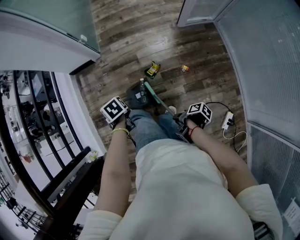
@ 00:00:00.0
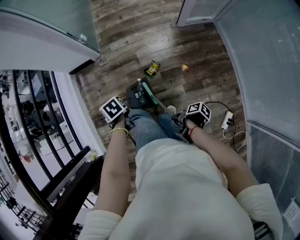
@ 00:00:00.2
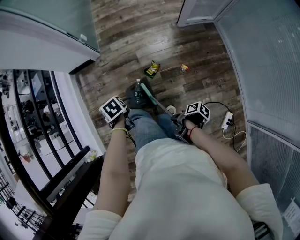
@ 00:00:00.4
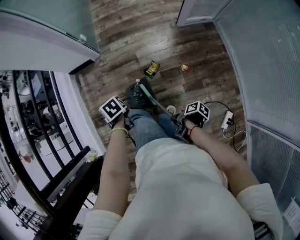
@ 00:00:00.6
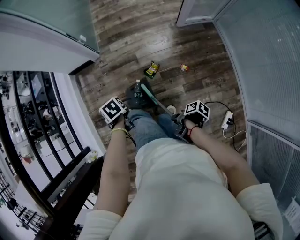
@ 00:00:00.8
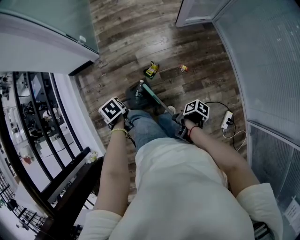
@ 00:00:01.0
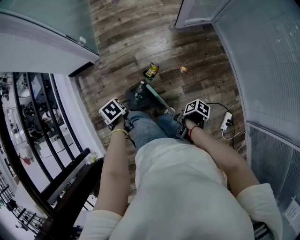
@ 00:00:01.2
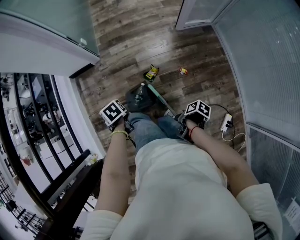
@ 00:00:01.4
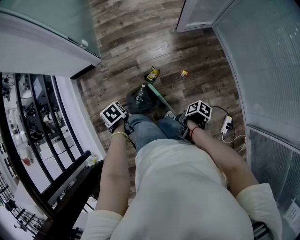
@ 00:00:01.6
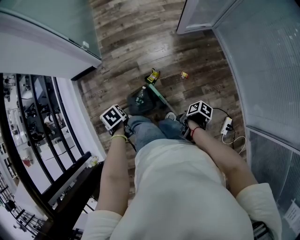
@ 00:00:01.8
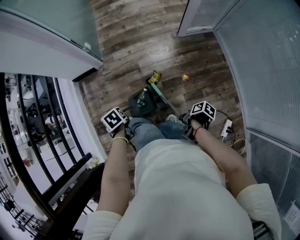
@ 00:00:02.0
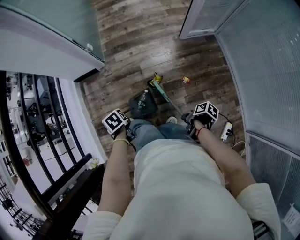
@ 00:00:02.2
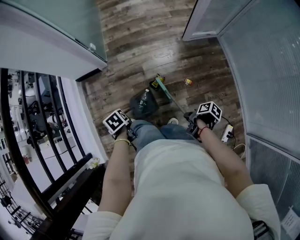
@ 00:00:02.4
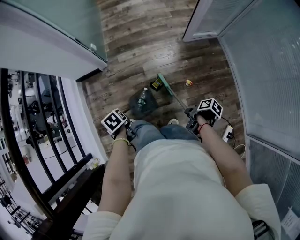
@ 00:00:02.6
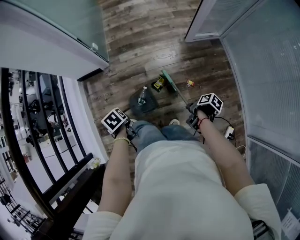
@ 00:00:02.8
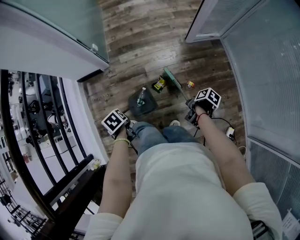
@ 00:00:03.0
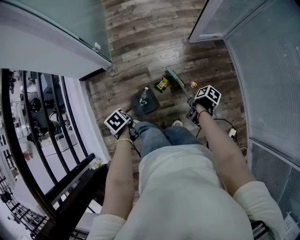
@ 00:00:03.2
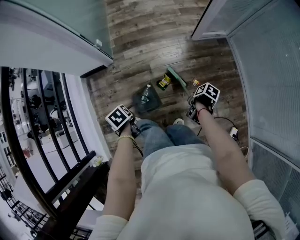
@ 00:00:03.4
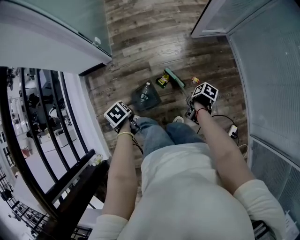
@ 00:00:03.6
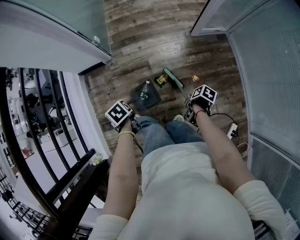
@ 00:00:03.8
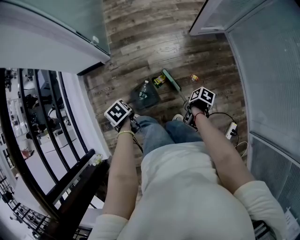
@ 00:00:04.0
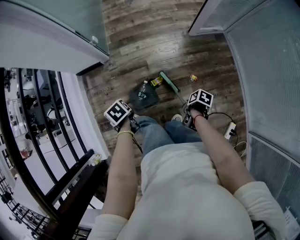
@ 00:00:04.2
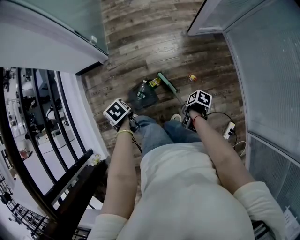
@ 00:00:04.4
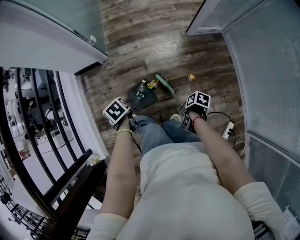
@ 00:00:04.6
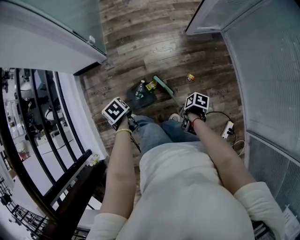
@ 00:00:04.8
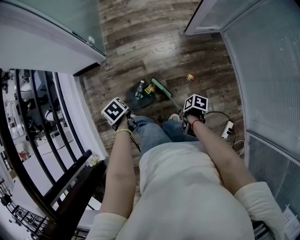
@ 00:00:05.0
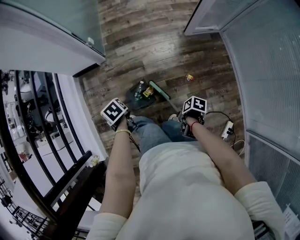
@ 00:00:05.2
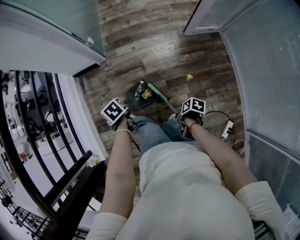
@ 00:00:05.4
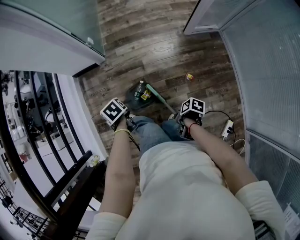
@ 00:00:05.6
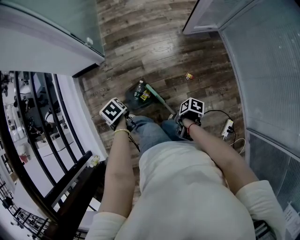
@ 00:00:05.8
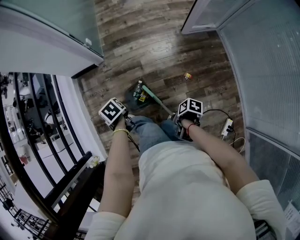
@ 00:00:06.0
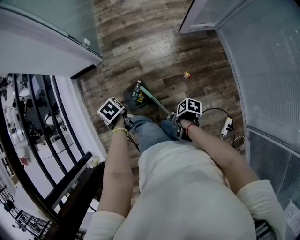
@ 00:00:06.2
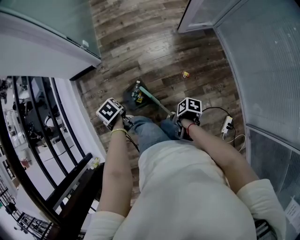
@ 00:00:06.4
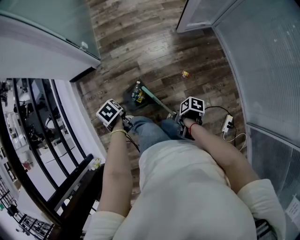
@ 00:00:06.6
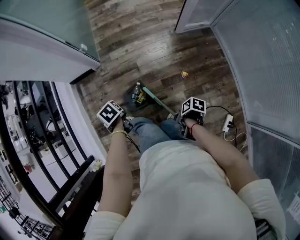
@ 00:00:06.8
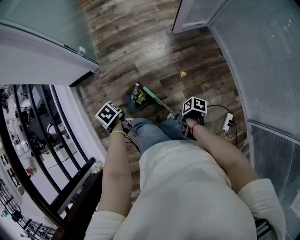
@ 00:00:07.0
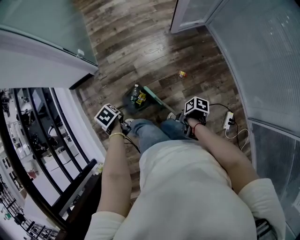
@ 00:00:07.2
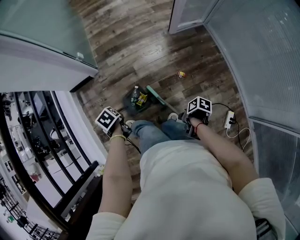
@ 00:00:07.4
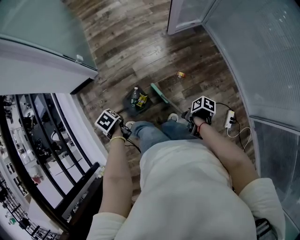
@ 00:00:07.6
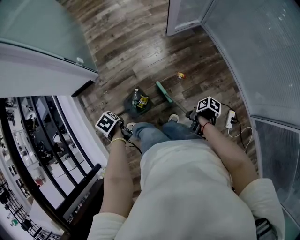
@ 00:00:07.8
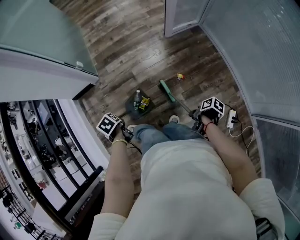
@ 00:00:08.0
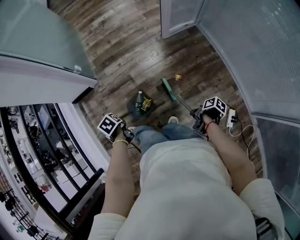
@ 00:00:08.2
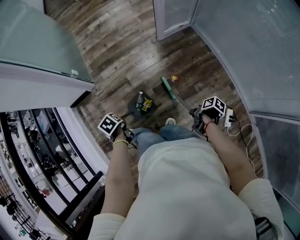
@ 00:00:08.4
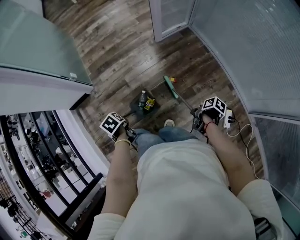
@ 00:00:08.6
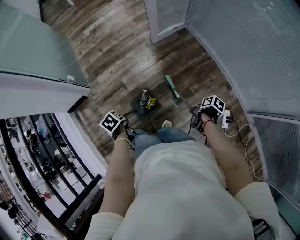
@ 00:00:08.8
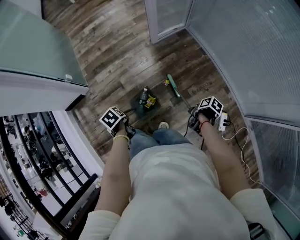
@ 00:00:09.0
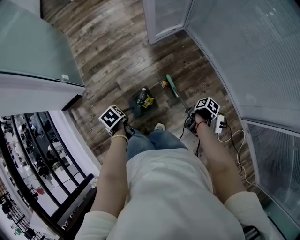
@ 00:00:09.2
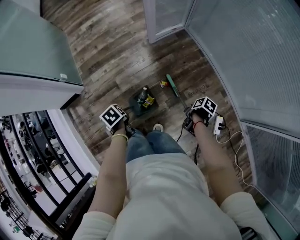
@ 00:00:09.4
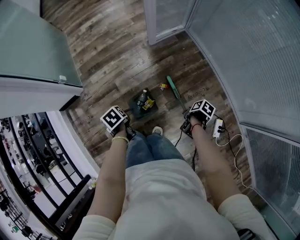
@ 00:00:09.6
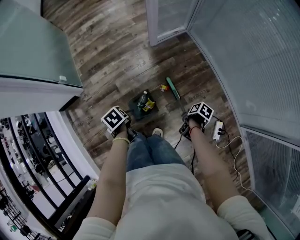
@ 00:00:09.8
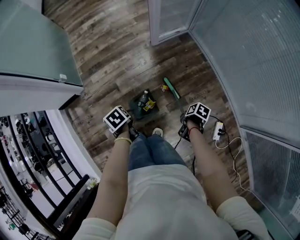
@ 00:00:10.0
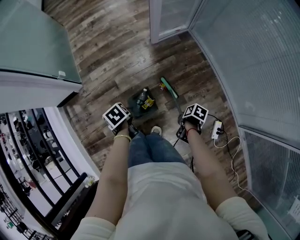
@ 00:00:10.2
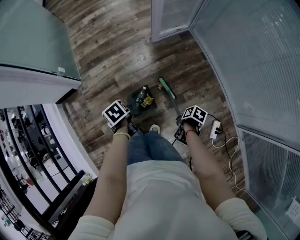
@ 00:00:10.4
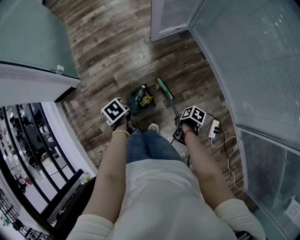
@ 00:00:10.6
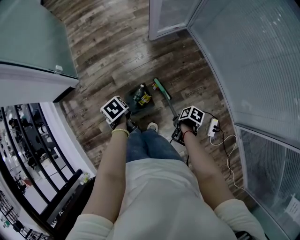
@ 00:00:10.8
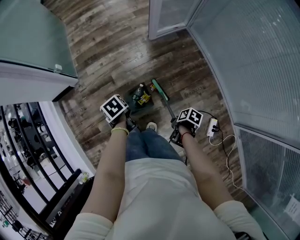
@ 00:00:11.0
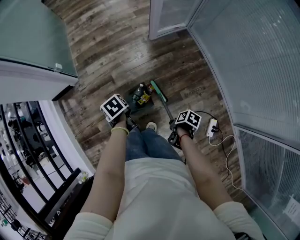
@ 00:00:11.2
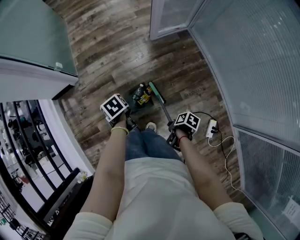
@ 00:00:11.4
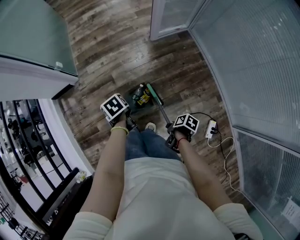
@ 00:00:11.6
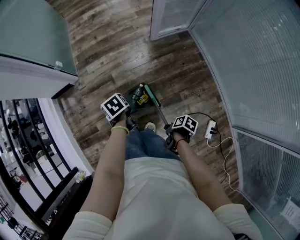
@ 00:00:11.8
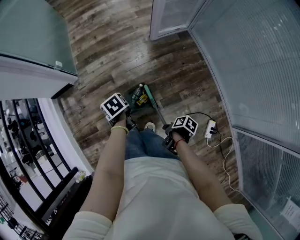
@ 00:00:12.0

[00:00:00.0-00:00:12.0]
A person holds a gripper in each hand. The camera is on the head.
00:00:07.6 to 00:00:09.0: The left gripper changes place by roughly 20 cm.
00:00:09.0 to 00:00:10.4: The left gripper ends up approximately 10 cm from where it was.

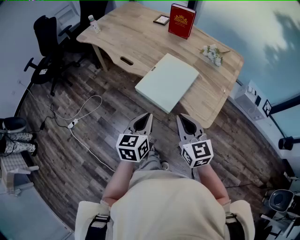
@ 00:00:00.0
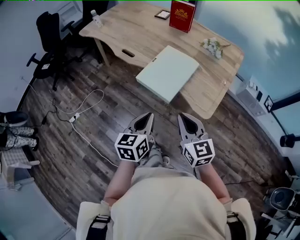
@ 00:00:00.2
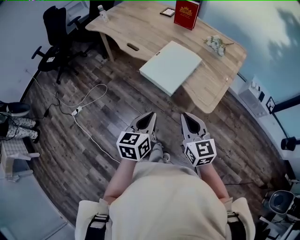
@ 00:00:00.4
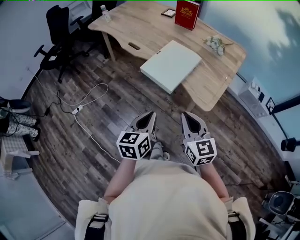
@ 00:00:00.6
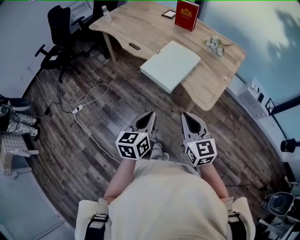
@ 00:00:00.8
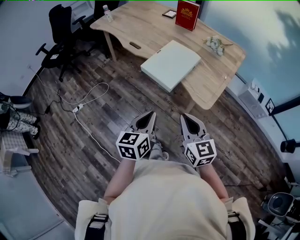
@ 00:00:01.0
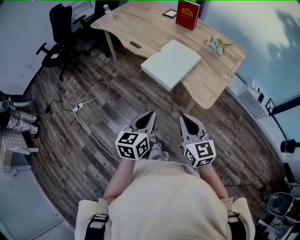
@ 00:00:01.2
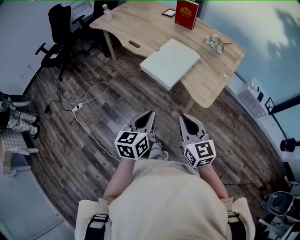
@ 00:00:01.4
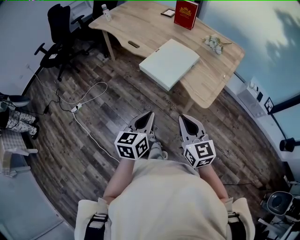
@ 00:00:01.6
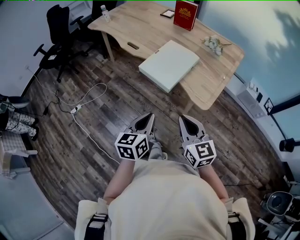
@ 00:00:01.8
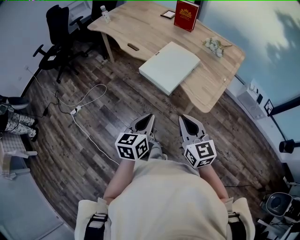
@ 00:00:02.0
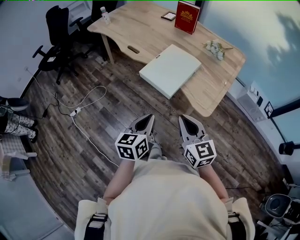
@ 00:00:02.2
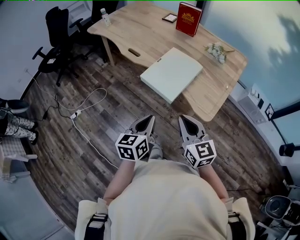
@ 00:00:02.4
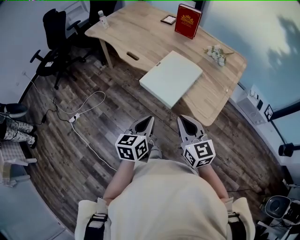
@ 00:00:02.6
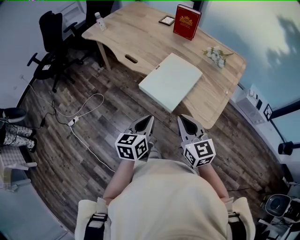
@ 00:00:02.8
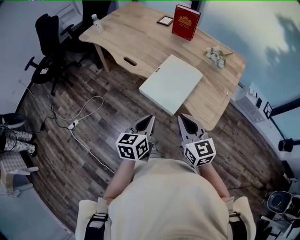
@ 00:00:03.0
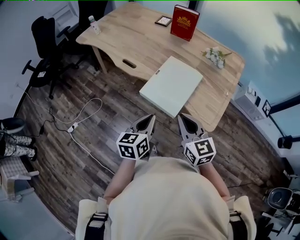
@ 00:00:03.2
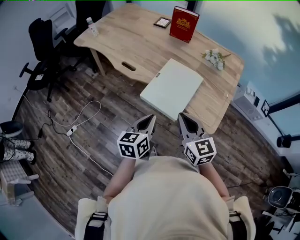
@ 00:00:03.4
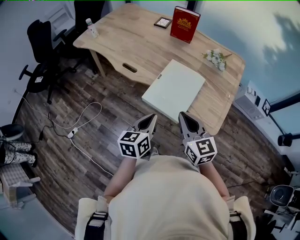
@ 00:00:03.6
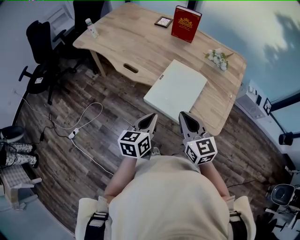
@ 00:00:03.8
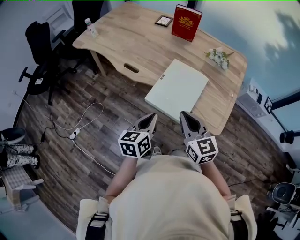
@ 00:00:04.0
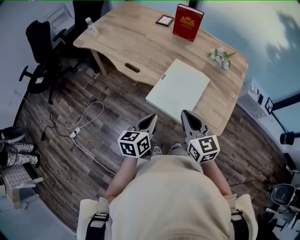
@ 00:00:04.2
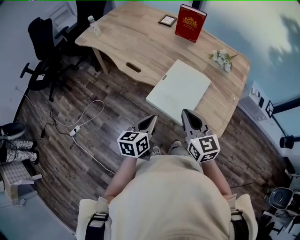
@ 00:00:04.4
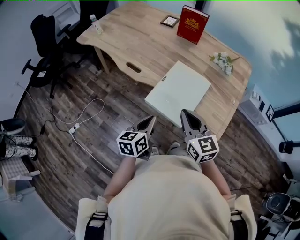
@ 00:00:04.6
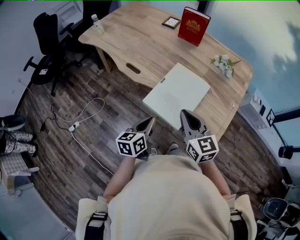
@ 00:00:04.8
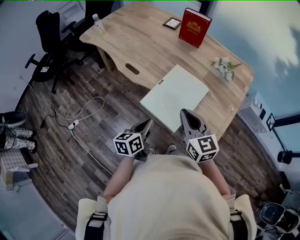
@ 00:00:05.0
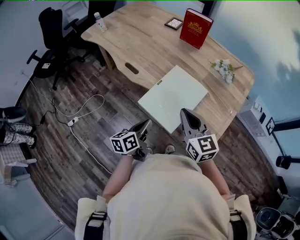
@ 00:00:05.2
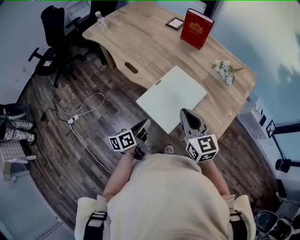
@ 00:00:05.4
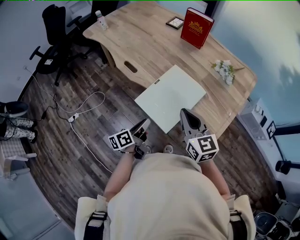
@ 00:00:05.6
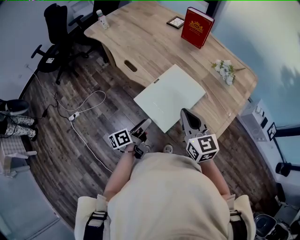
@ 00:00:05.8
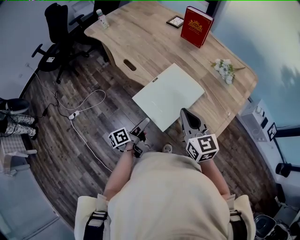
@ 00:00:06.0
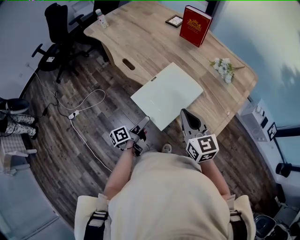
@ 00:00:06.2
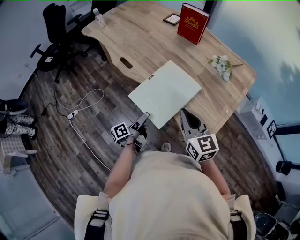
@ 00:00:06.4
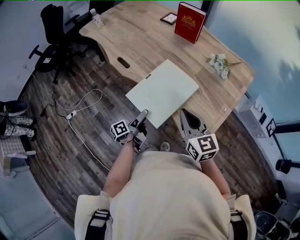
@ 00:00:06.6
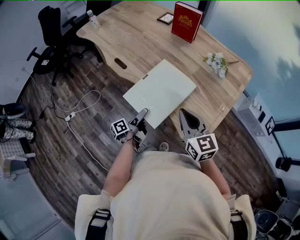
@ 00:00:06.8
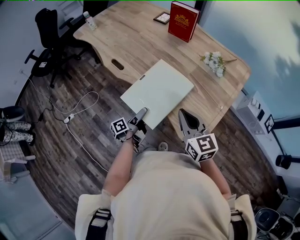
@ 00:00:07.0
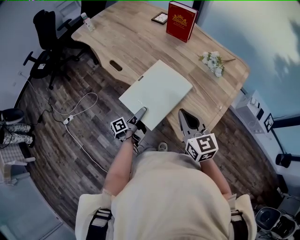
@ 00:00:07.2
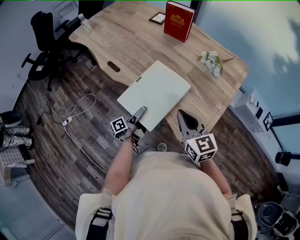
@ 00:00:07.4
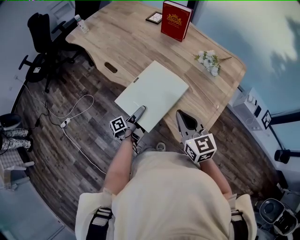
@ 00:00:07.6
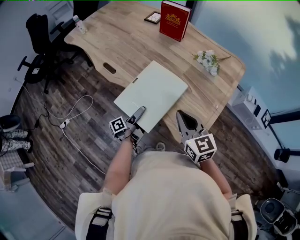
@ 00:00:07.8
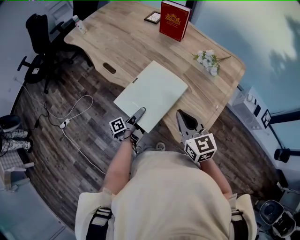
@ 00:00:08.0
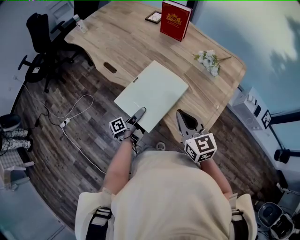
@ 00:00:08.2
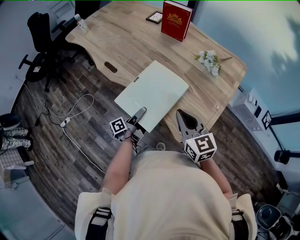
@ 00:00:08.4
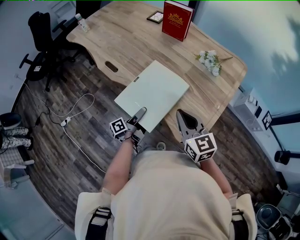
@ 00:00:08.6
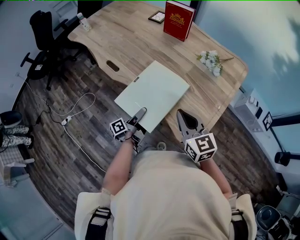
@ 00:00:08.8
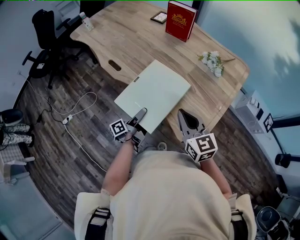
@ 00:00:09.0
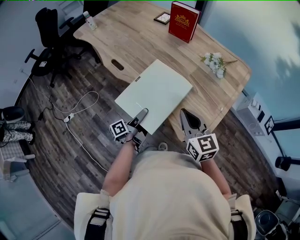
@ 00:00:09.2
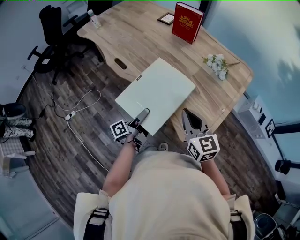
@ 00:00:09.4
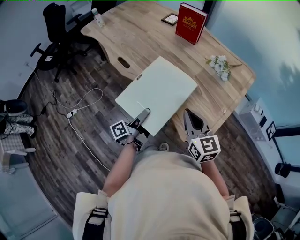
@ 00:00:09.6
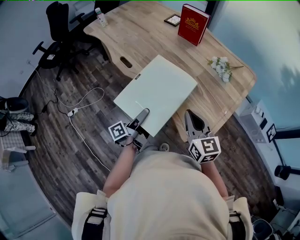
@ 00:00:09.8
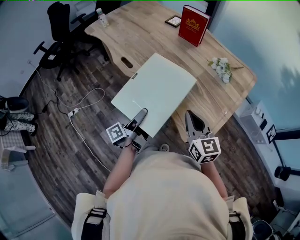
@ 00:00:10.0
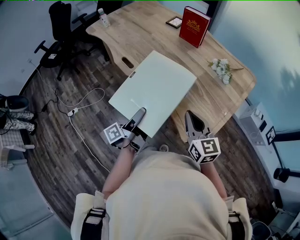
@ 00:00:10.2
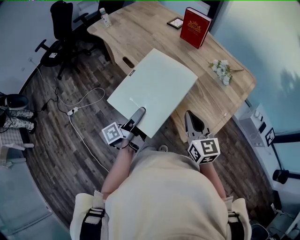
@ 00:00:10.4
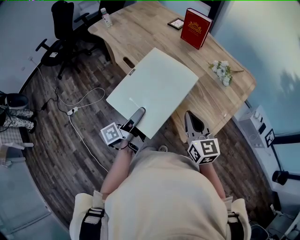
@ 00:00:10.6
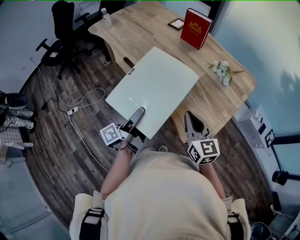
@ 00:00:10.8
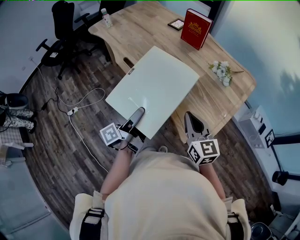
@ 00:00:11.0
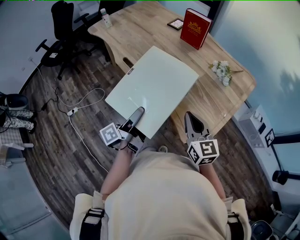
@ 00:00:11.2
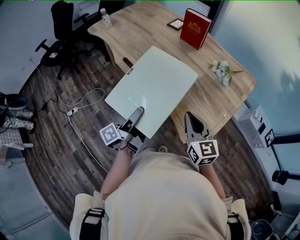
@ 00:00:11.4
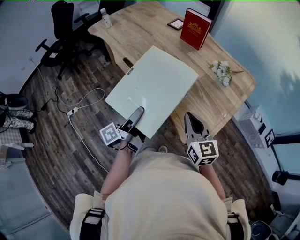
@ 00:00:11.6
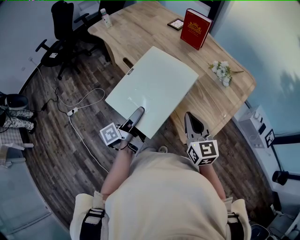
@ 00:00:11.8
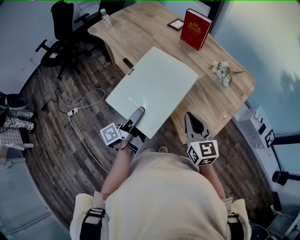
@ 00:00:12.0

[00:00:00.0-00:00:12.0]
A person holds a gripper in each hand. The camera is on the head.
00:00:00.0 to 00:00:01.6: Both grippers move backward, approximately 15 cm.
00:00:01.6 to 00:00:03.0: The grippers both shift forward by roughly 15 cm.
00:00:03.0 to 00:00:04.4: Both grippers move forward, about 5 cm.
00:00:04.4 to 00:00:06.0: The right gripper travels to the right by some 10 cm. The left gripper goes some 10 cm downward, rotates around the line of its fingers by roughly 50 degrees, counterclockwise from behind, and opens up.
00:00:06.0 to 00:00:07.6: The right gripper shifts approximately 5 cm to the right, while the left gripper travels forward, to the right and downward by some 10 cm.
00:00:07.6 to 00:00:09.0: The left gripper closes up.
00:00:09.0 to 00:00:10.4: The left gripper heads upward, covering some 15 cm.
00:00:10.4 to 00:00:12.0: The grippers make only small movements.
